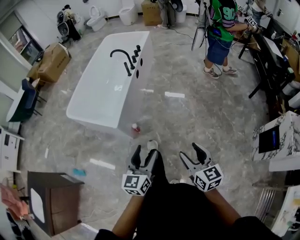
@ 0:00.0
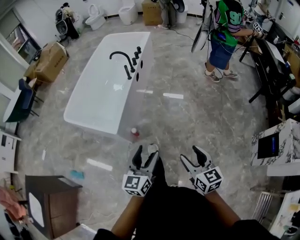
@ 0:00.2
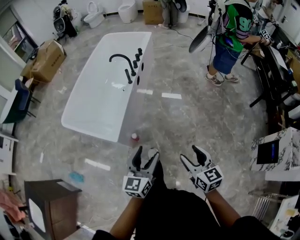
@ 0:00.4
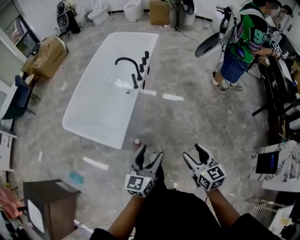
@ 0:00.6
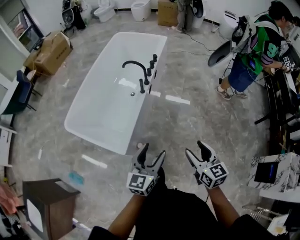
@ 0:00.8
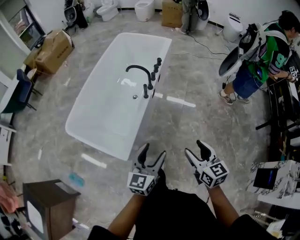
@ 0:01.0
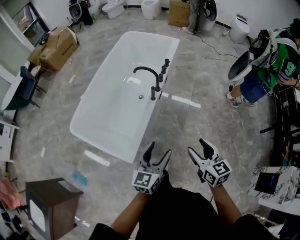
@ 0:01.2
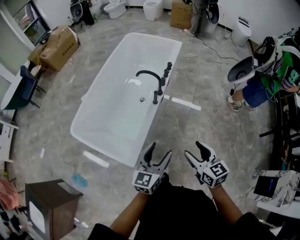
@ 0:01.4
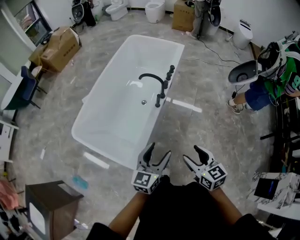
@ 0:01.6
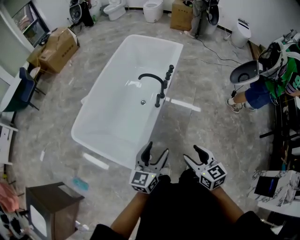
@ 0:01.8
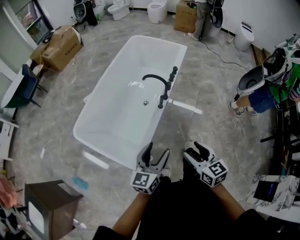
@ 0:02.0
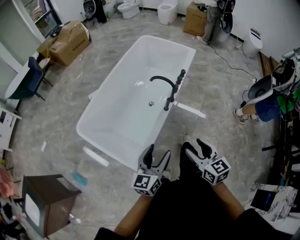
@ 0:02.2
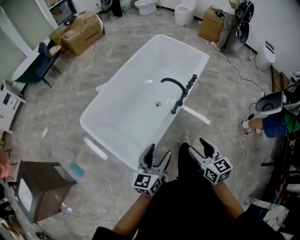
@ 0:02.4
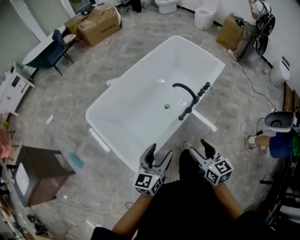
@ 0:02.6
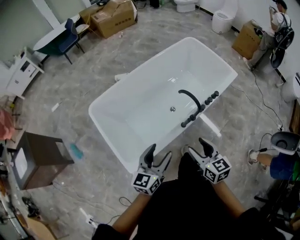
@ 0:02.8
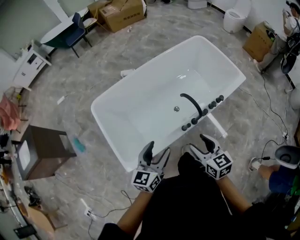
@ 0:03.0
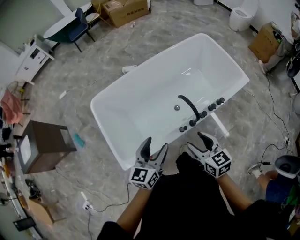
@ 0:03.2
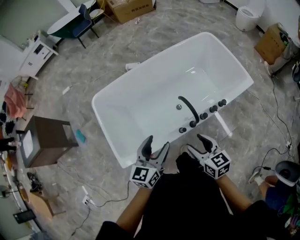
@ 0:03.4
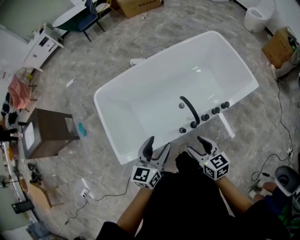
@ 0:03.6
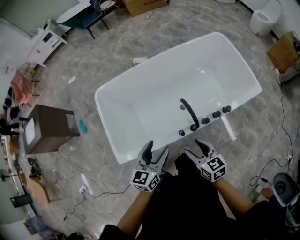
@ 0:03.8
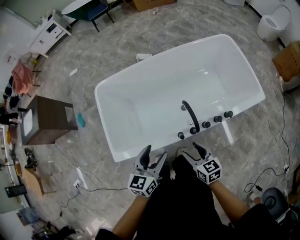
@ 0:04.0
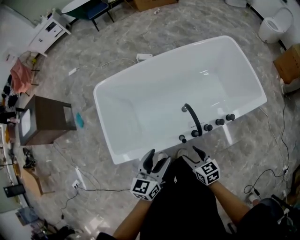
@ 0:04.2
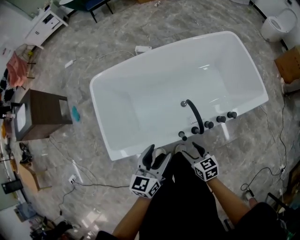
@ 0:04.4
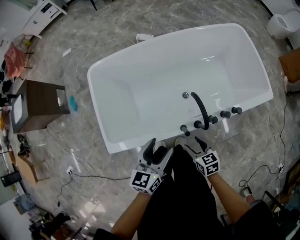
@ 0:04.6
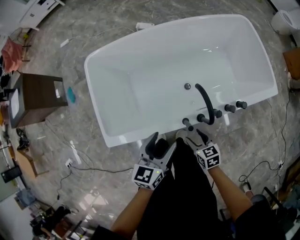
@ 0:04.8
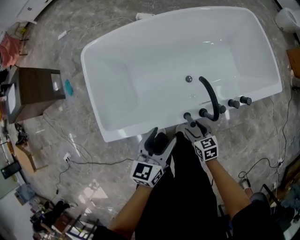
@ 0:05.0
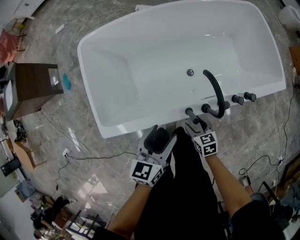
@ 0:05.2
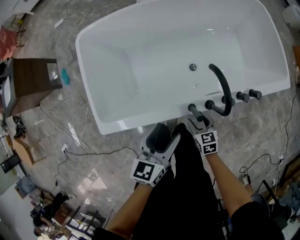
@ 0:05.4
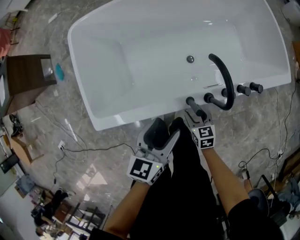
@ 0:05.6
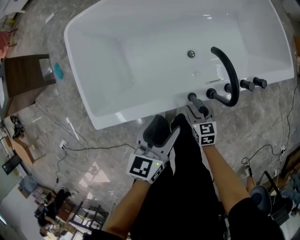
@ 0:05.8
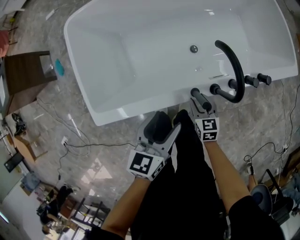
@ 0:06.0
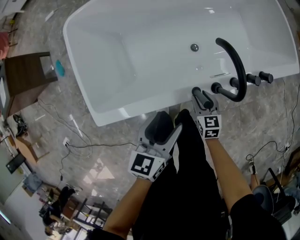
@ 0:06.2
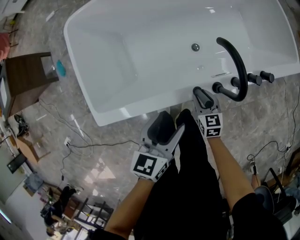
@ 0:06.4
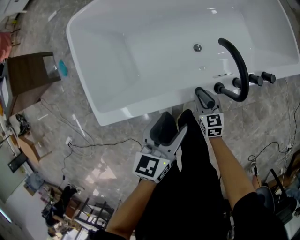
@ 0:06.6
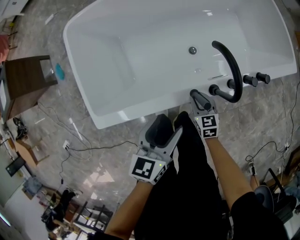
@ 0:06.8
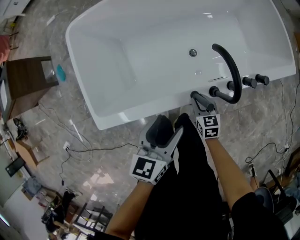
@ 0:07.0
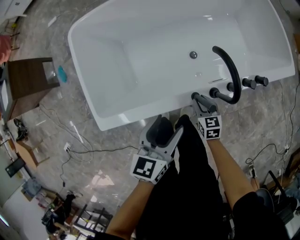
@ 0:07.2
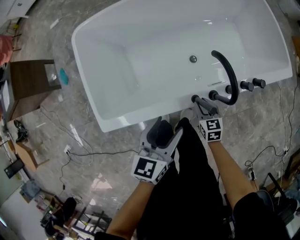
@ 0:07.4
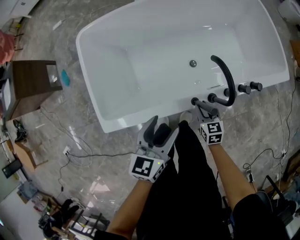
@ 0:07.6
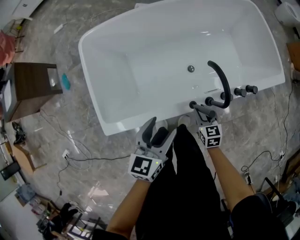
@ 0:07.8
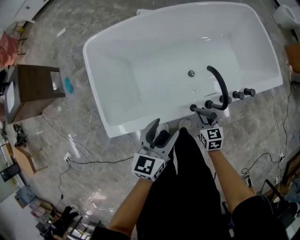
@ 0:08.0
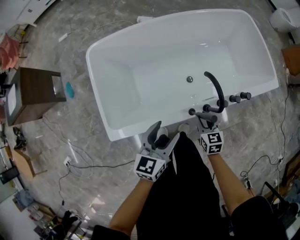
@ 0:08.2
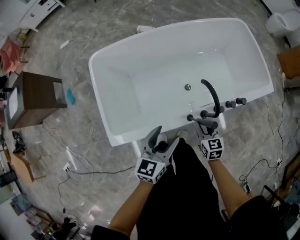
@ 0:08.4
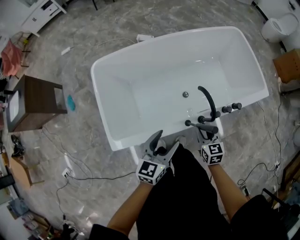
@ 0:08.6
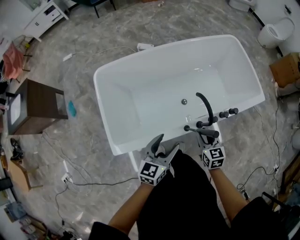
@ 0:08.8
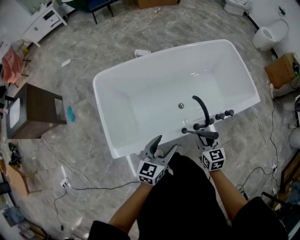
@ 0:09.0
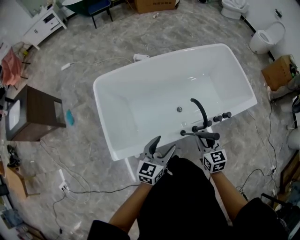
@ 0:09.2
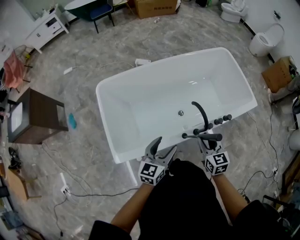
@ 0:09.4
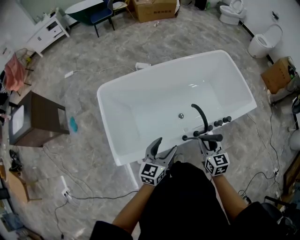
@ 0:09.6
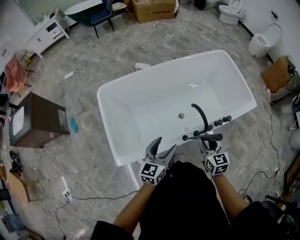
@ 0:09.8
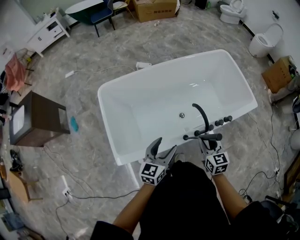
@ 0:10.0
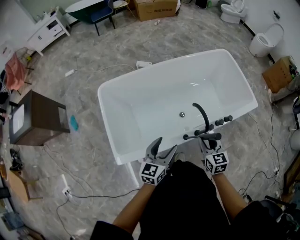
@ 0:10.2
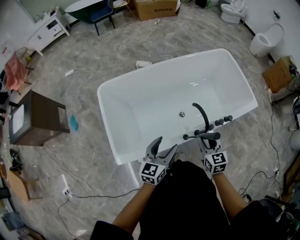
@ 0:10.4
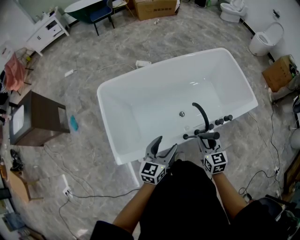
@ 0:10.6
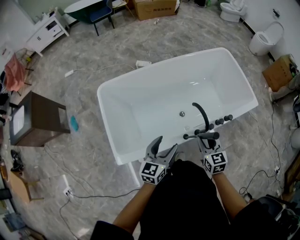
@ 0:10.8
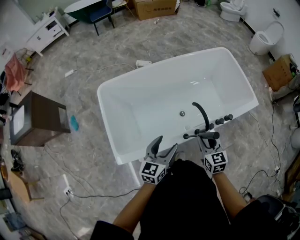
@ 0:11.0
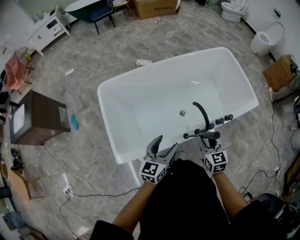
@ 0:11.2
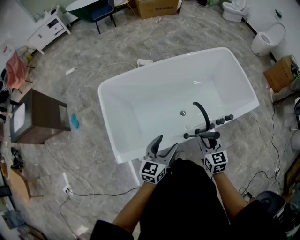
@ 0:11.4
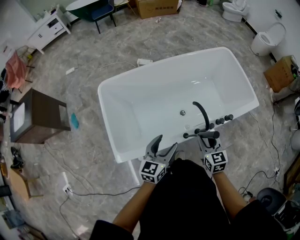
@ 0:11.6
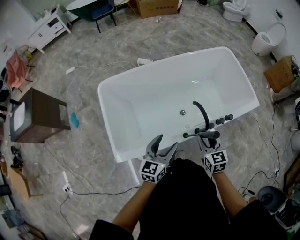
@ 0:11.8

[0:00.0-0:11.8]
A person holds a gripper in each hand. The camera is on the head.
0:00.0 to 0:01.4: The two grippers travel together, forward, approximately 50 cm.
0:01.4 to 0:03.0: The left gripper ends up roughly 25 cm from where it was, and changes its angle by about 40 degrees. The right gripper changes place by about 35 cm, and swivels about 40 degrees.
0:03.0 to 0:04.4: The left gripper is displaced to the right and downward by some 10 cm. The right gripper heads downward, covering roughly 20 cm, and changes its angle by about 30 degrees.
0:04.4 to 0:06.0: The two grippers go about 20 cm downward.
0:06.0 to 0:07.4: There are only small adjustments of the grippers.
0:07.4 to 0:08.8: The right gripper shifts roughly 25 cm upward. Meanwhile the left gripper moves upward, some 10 cm.
0:08.8 to 0:10.4: The right gripper goes approximately 10 cm upward.
0:10.4 to 0:11.8: Neither gripper changes place.

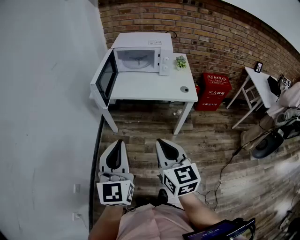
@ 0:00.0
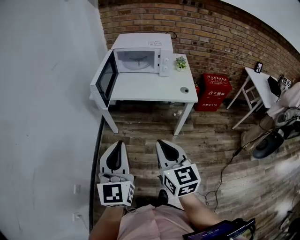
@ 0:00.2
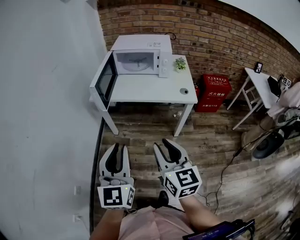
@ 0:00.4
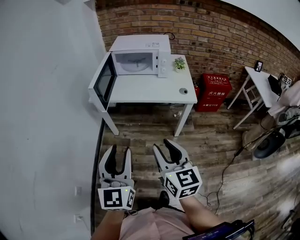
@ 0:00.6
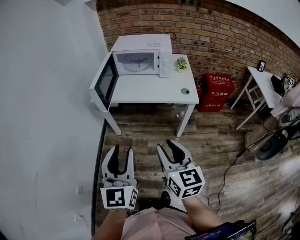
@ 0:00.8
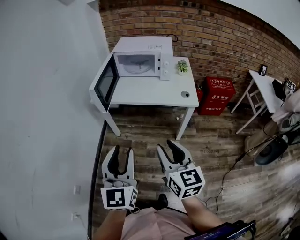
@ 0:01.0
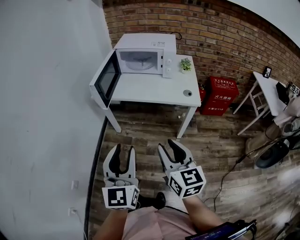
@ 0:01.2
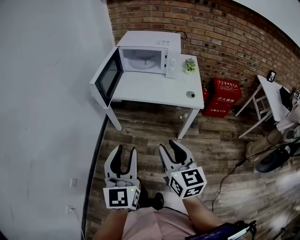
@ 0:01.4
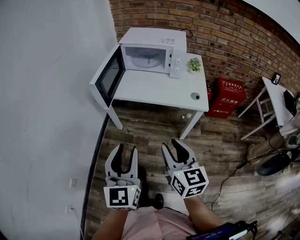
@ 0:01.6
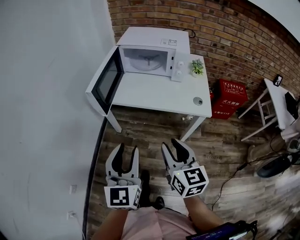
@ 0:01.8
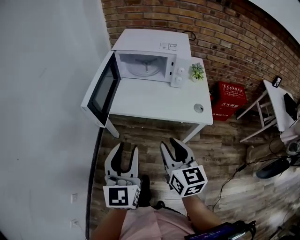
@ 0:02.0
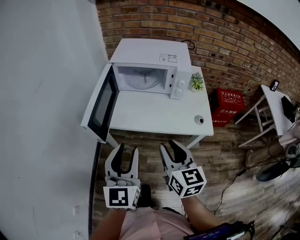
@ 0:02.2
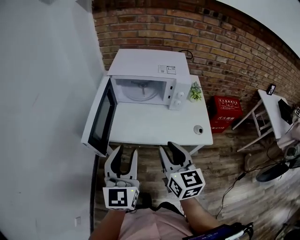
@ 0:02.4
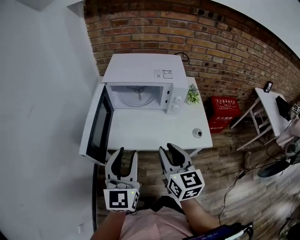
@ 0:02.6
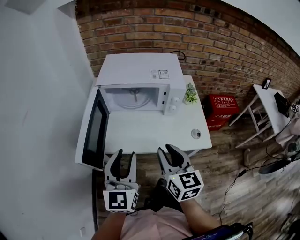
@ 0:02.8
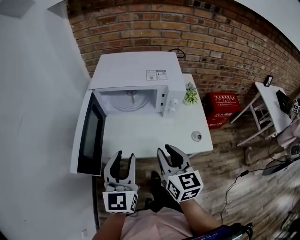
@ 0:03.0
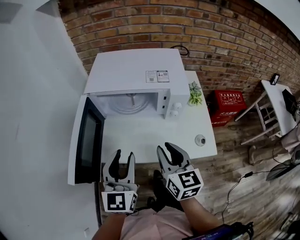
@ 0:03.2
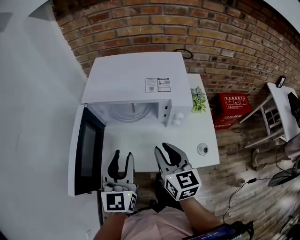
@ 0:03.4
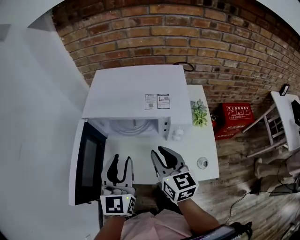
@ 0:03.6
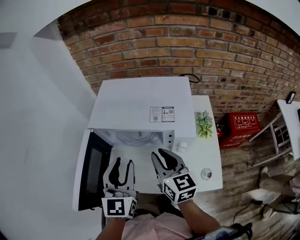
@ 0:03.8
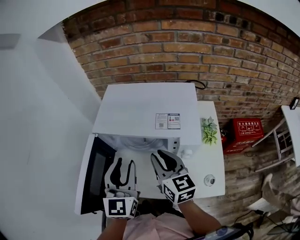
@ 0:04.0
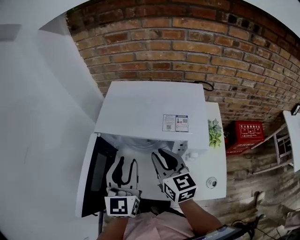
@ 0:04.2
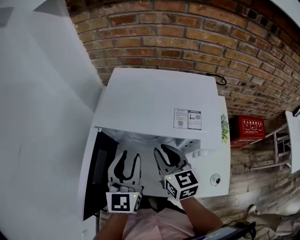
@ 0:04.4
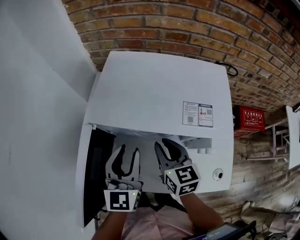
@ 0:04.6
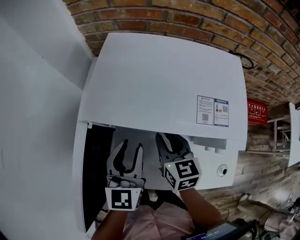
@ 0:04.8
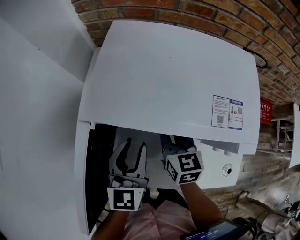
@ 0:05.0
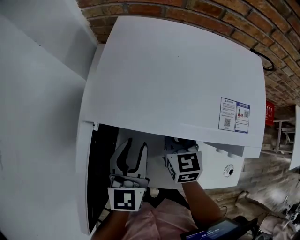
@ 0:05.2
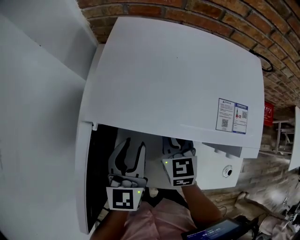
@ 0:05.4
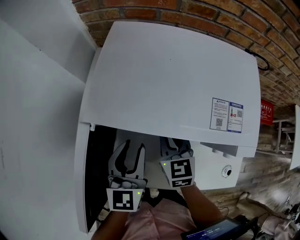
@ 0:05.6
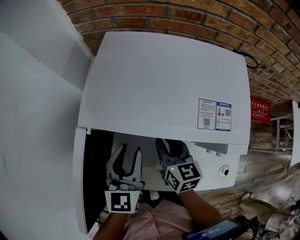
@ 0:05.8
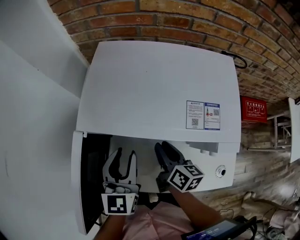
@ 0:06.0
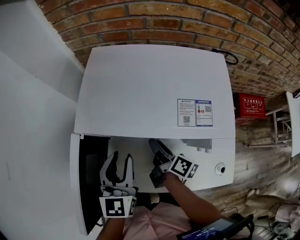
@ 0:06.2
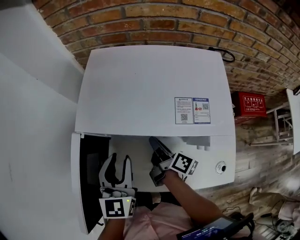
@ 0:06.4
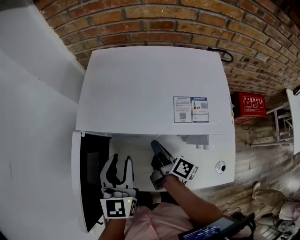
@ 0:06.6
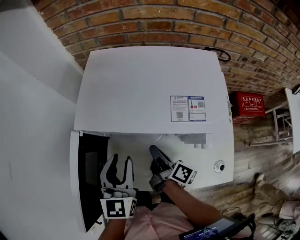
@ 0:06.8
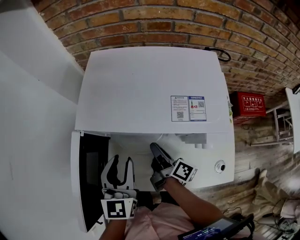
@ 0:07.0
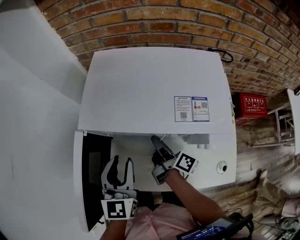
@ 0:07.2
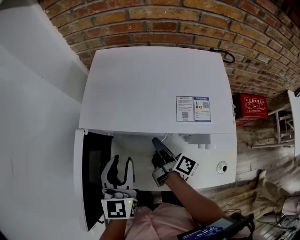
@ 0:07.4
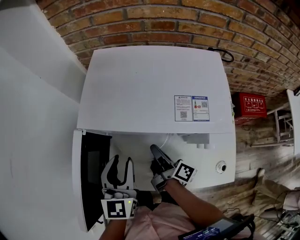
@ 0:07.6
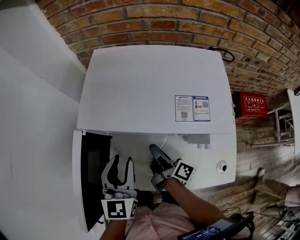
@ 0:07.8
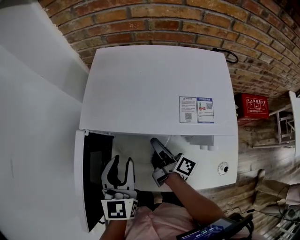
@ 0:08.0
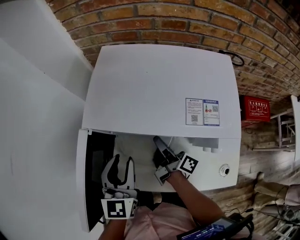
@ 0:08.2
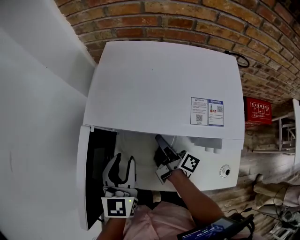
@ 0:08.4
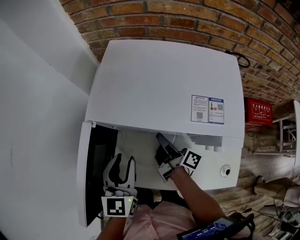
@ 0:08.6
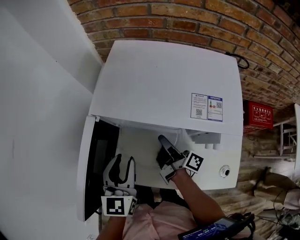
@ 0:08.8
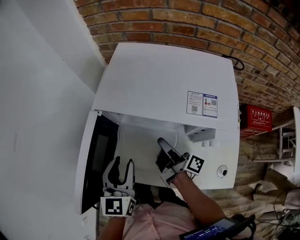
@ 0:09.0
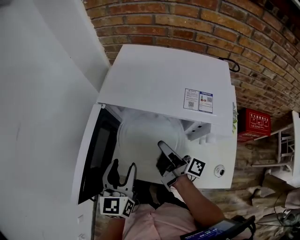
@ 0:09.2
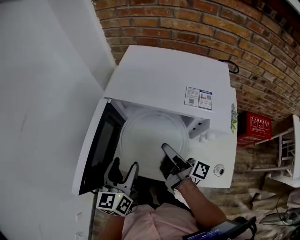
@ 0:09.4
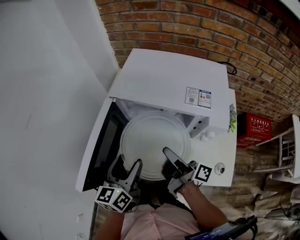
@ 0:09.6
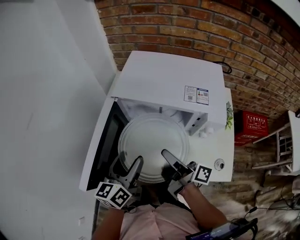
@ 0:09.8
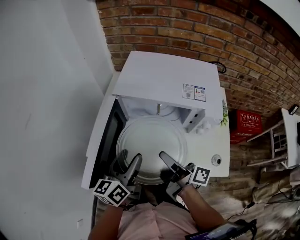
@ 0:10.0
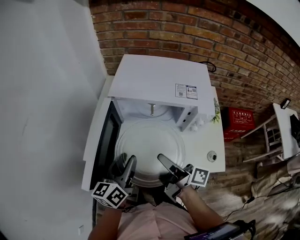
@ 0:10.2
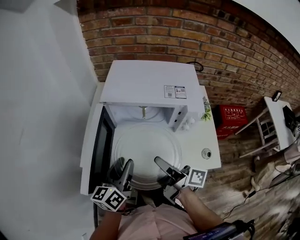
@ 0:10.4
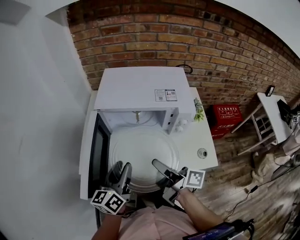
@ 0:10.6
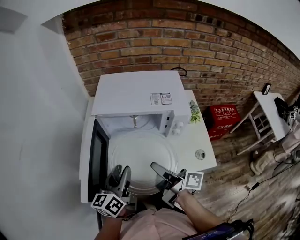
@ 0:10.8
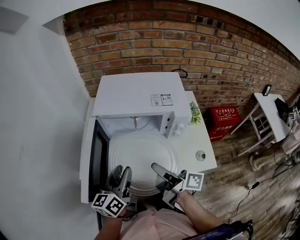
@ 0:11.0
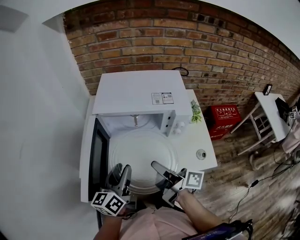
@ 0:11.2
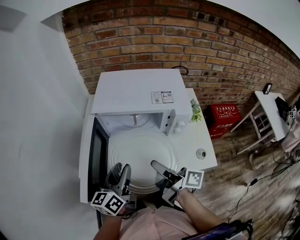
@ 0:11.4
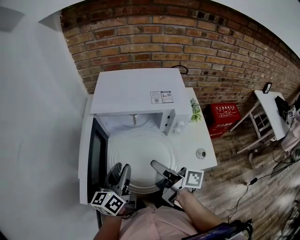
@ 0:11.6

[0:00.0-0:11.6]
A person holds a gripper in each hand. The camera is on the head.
0:00.0 to 0:01.4: The two grippers go roughly 5 cm to the right. The right gripper opens; the left gripper opens its fingers.
0:01.4 to 0:02.8: Both grippers travel together forward, about 30 cm.
0:02.8 to 0:04.4: Both grippers travel together forward, about 25 cm.
0:04.4 to 0:05.8: The two grippers go some 10 cm downward.
0:05.8 to 0:07.2: The right gripper twists some 60 degrees clockwise, seen from behind.
0:07.2 to 0:08.8: The right gripper closes up.
0:08.8 to 0:10.2: The left gripper is displaced backward by some 10 cm, turns by some 40 degrees, and opens, then closes again. Meanwhile the right gripper moves backward and upward, about 20 cm.
0:10.2 to 0:11.6: The grippers make only small movements.
